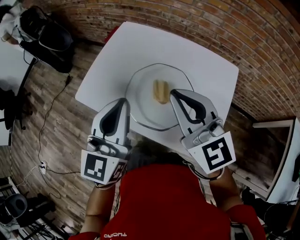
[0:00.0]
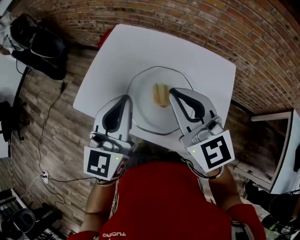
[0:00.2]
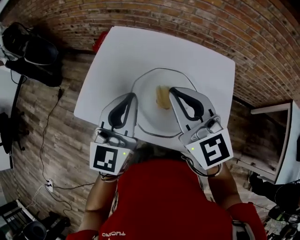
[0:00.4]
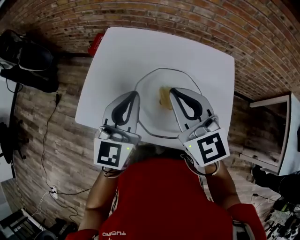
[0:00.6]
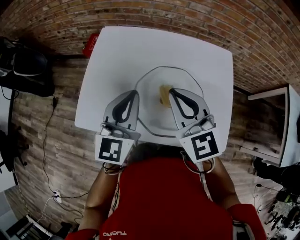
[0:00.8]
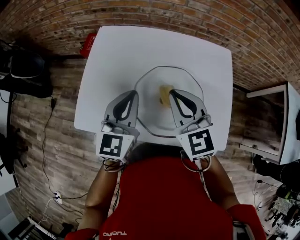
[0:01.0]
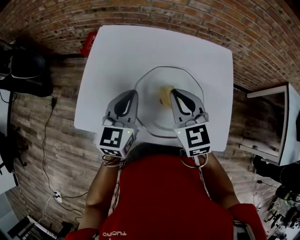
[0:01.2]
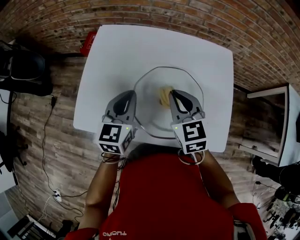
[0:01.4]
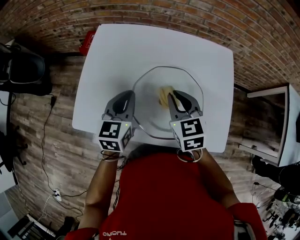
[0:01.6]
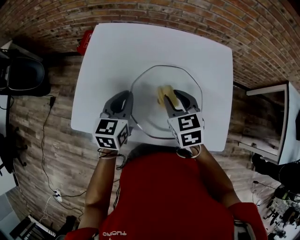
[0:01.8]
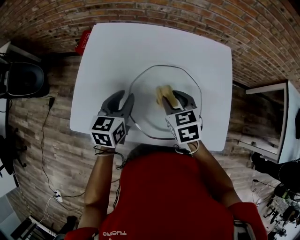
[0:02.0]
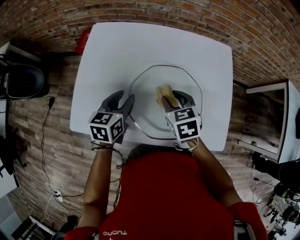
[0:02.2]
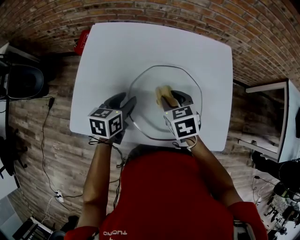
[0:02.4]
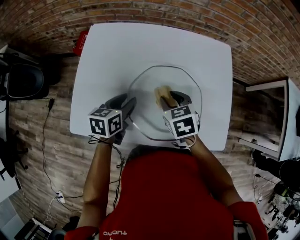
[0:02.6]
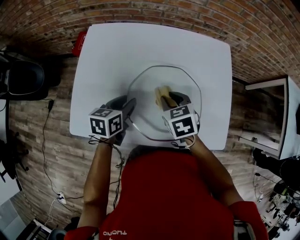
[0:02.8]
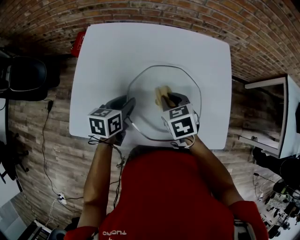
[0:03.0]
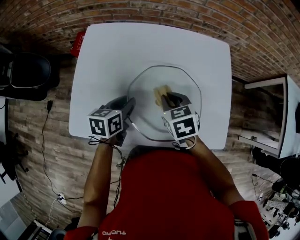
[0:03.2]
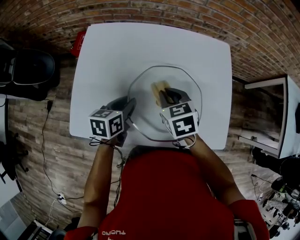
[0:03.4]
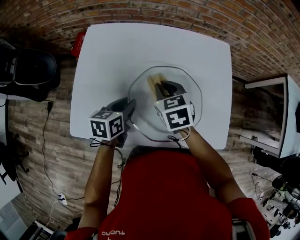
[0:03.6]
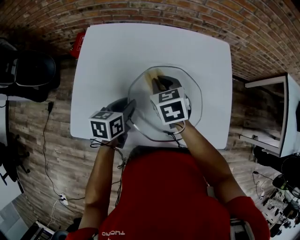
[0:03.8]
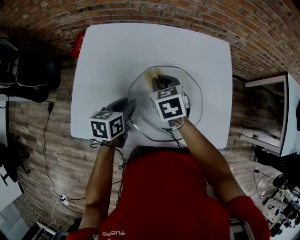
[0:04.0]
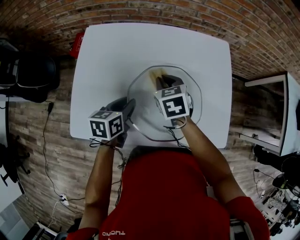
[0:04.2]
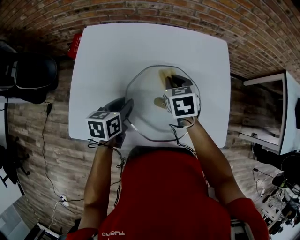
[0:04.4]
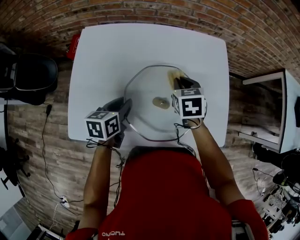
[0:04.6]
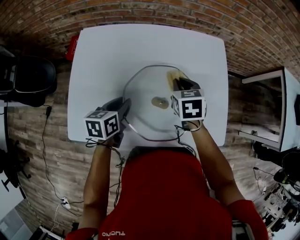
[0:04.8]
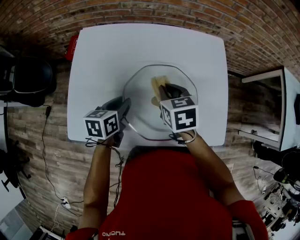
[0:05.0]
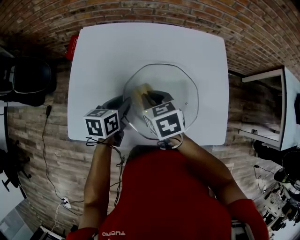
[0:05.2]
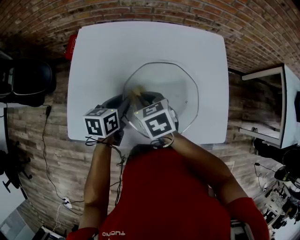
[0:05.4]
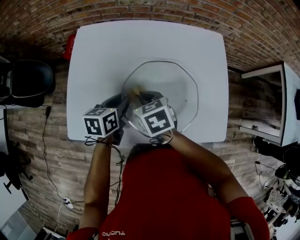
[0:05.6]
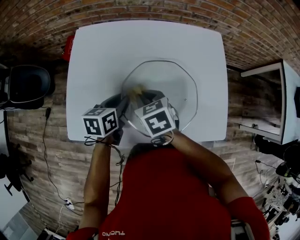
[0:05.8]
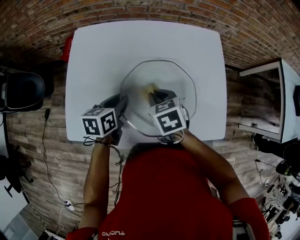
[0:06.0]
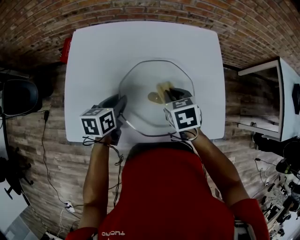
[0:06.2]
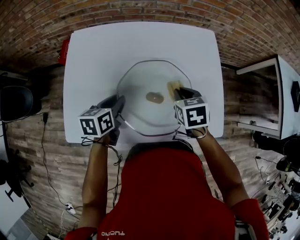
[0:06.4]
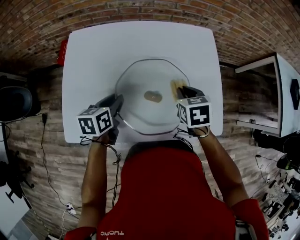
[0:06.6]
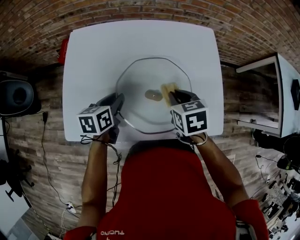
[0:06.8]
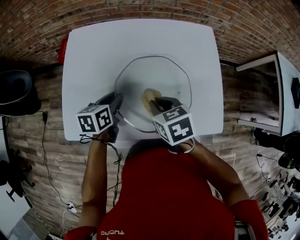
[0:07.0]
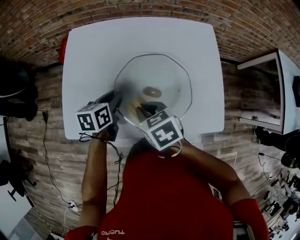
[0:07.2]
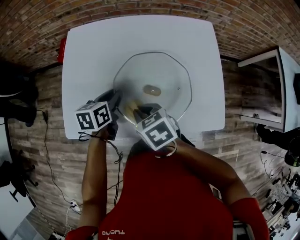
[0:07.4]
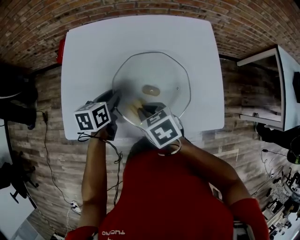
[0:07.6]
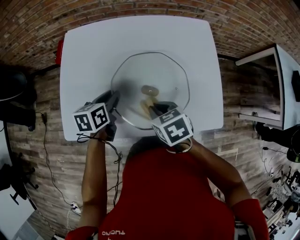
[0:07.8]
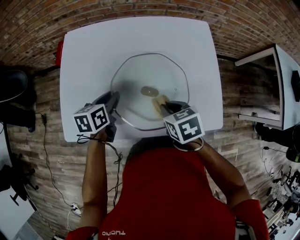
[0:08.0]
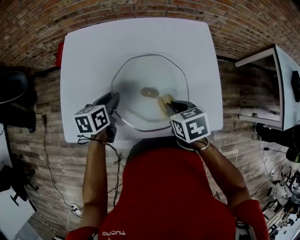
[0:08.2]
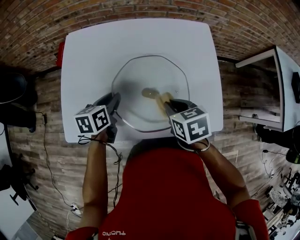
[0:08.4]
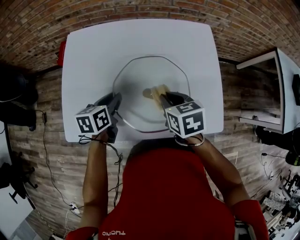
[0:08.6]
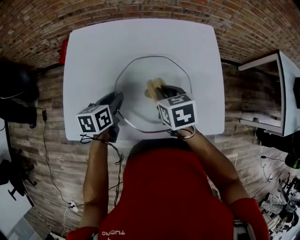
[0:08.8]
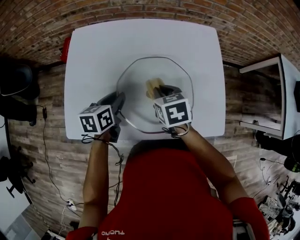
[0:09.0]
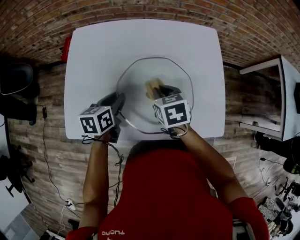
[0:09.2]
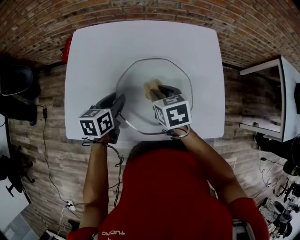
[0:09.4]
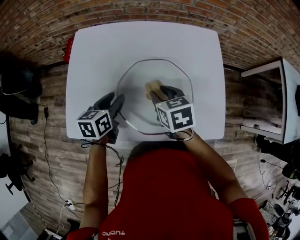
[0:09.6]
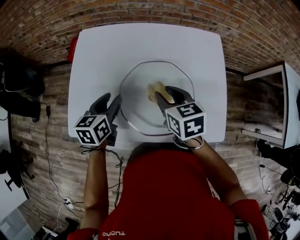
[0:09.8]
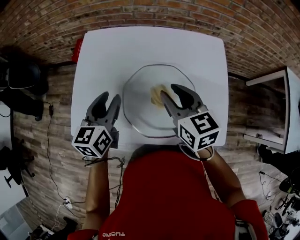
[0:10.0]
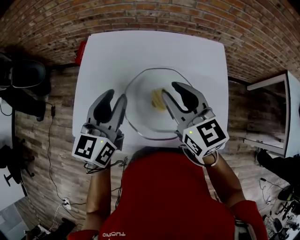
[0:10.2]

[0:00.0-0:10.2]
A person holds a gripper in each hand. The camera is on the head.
0:00.0 to 0:01.4: Both grippers travel together downward and forward, about 20 cm. The right gripper swivels about 40 degrees; the left gripper rotates approximately 30 degrees.
0:01.4 to 0:03.0: Both grippers move downward, approximately 10 cm. The left gripper changes its angle by some 30 degrees, and opens its fingers. The right gripper turns by about 30 degrees.
0:03.0 to 0:04.4: The right gripper goes approximately 5 cm forward.
0:04.4 to 0:05.8: The right gripper goes some 15 cm to the left and backward.
0:05.8 to 0:07.2: The right gripper heads backward, covering some 5 cm, and travels to the right and back again, approximately 20 cm each way.
0:07.2 to 0:08.8: The right gripper travels to the right and forward by roughly 10 cm.
0:08.8 to 0:10.2: The two grippers go about 20 cm upward. The right gripper points its fingers some 40 degrees further upward, and opens up, while the left gripper tips its fingers upward by some 30 degrees.

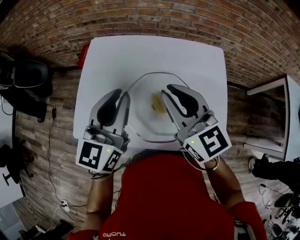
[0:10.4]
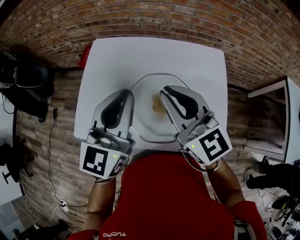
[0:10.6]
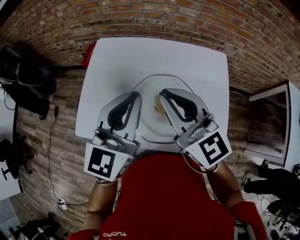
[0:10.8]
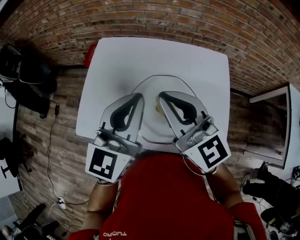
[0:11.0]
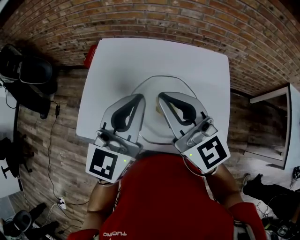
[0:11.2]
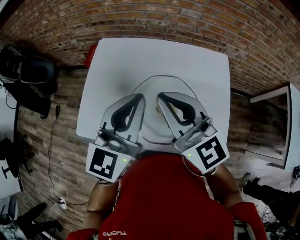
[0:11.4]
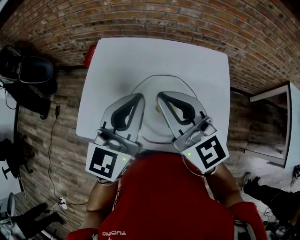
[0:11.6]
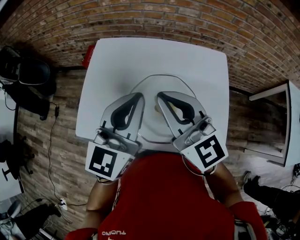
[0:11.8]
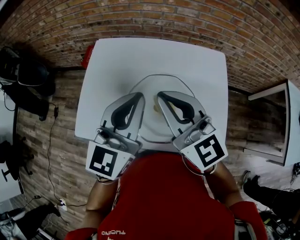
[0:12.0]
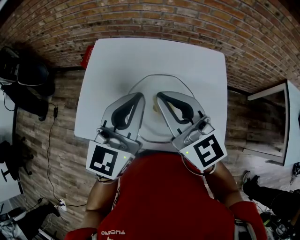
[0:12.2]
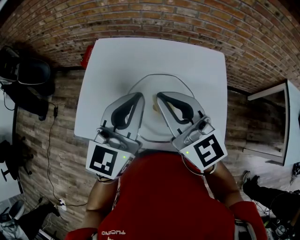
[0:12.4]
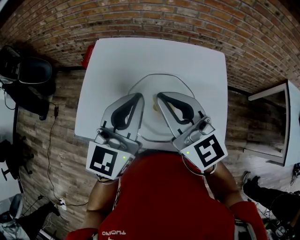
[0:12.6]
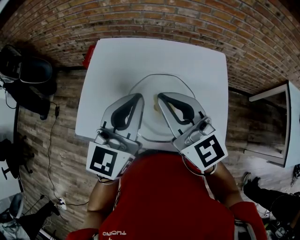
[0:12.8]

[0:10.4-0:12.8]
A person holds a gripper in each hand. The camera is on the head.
0:10.4 to 0:11.6: The right gripper changes place by some 5 cm.
0:11.6 to 0:12.8: The grippers make only small movements.

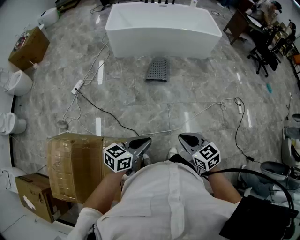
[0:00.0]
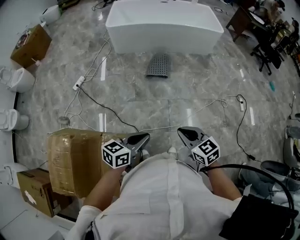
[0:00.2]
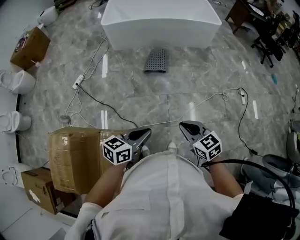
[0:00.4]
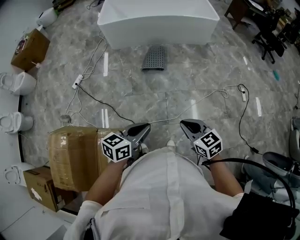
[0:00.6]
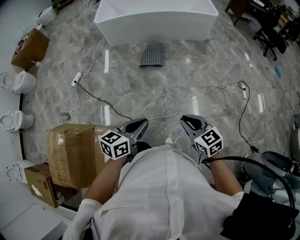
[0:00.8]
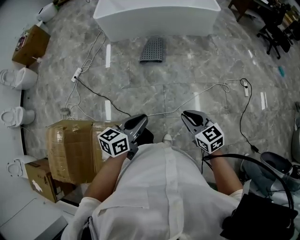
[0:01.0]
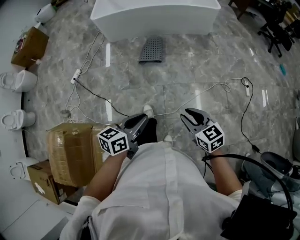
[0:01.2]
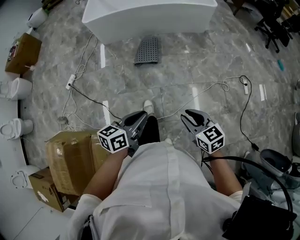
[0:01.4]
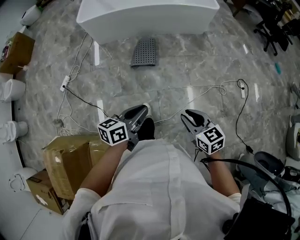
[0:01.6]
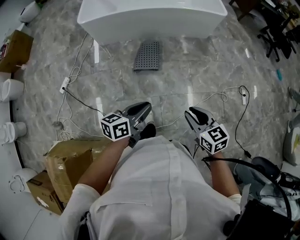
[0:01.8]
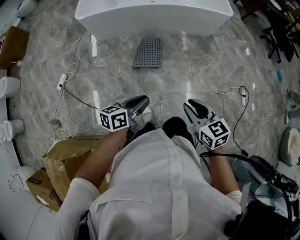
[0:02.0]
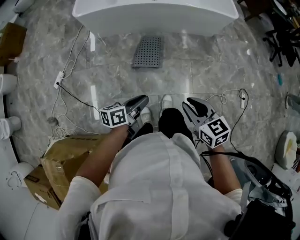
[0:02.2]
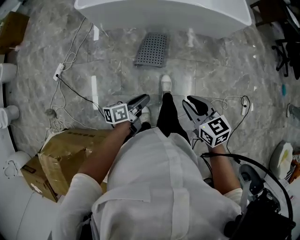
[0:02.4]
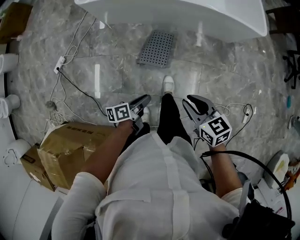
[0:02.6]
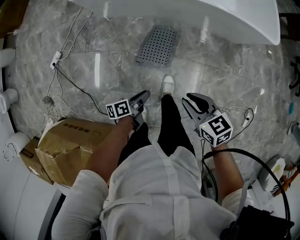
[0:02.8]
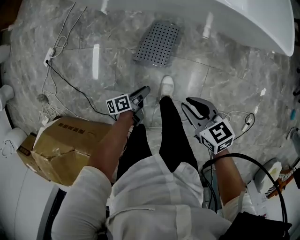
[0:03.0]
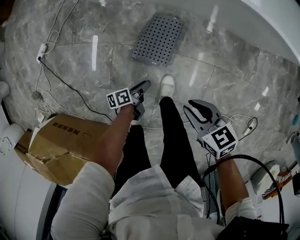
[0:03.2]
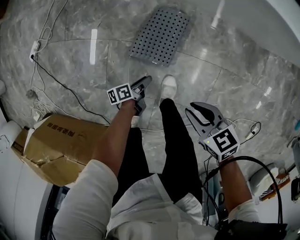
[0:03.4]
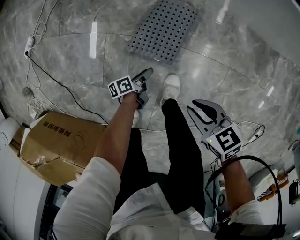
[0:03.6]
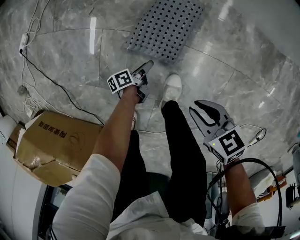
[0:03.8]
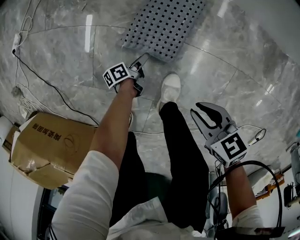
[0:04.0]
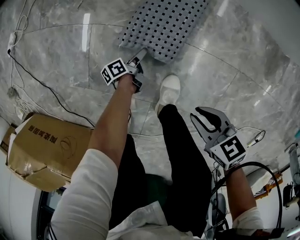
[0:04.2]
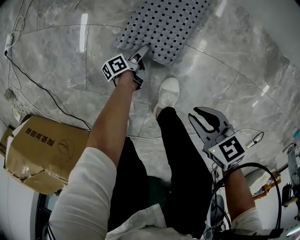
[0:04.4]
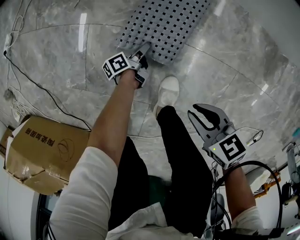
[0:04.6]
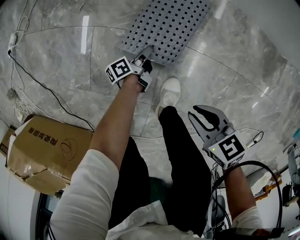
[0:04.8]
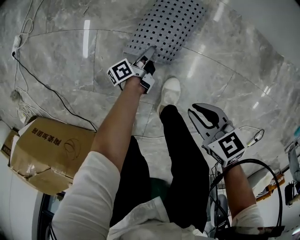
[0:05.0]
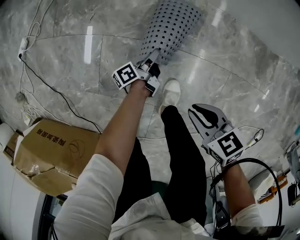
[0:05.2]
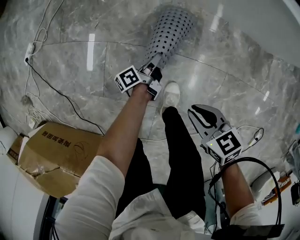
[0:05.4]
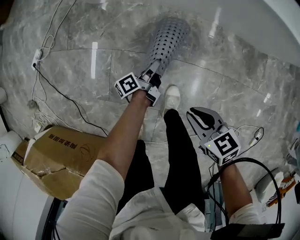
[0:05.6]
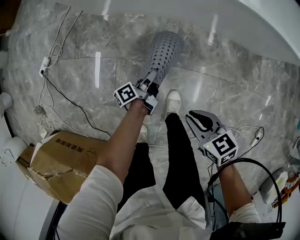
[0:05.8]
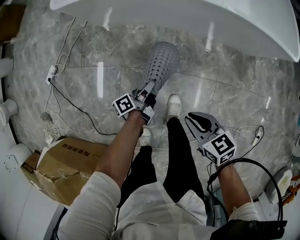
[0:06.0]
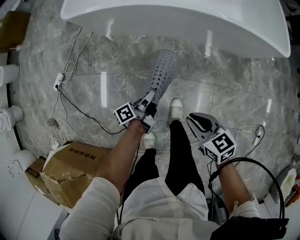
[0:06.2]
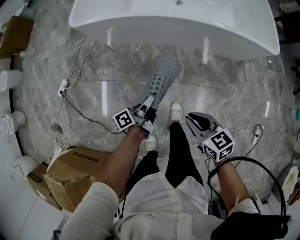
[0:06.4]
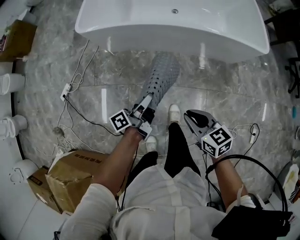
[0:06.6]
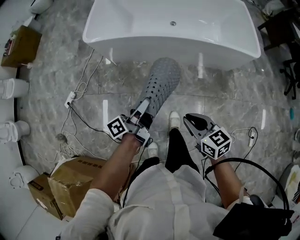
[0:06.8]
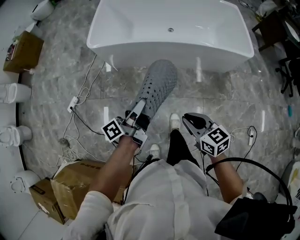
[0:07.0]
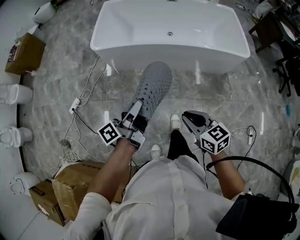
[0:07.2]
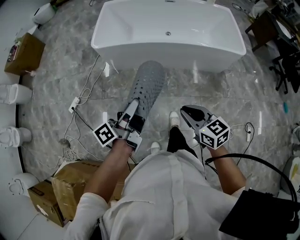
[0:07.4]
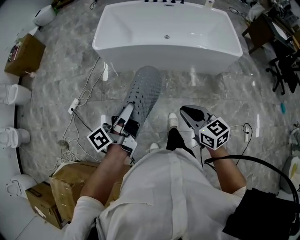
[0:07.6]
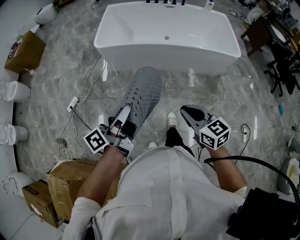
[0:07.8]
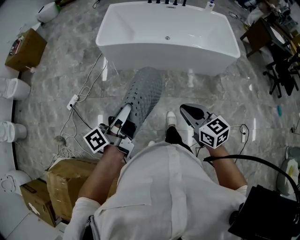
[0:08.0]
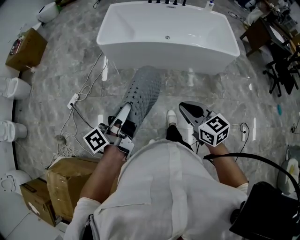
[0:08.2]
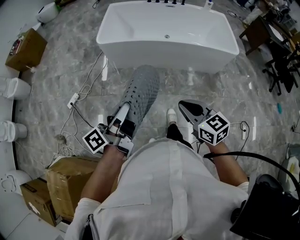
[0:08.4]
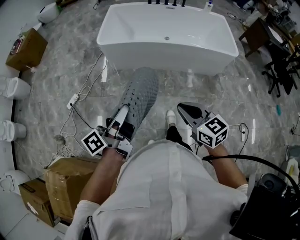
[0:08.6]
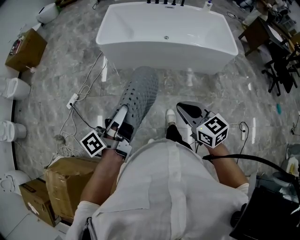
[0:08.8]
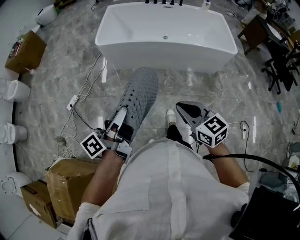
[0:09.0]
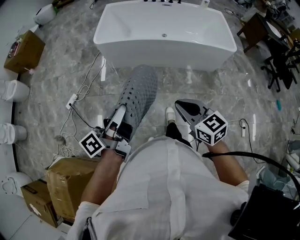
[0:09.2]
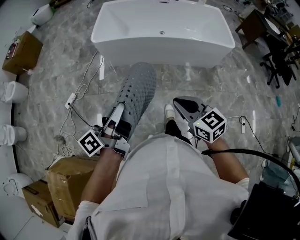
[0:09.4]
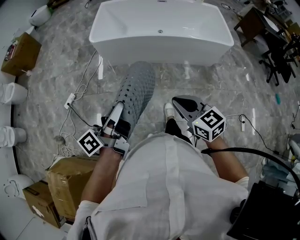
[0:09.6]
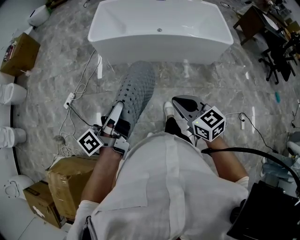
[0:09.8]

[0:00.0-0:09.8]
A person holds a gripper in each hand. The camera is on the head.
0:00.0 to 0:01.4: The right gripper ends up about 25 cm from where it was.
0:01.4 to 0:02.8: The right gripper ends up about 60 cm from where it was, and rotates some 20 degrees.
0:02.8 to 0:04.2: The right gripper heads downward, covering roughly 40 cm, and turns by some 20 degrees.
0:04.2 to 0:05.6: The right gripper is displaced upward by roughly 15 cm.
0:05.6 to 0:07.0: The right gripper heads upward, covering approximately 40 cm, and swivels roughly 20 degrees.
0:07.0 to 0:08.4: The right gripper ends up some 20 cm from where it was.

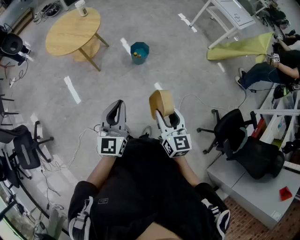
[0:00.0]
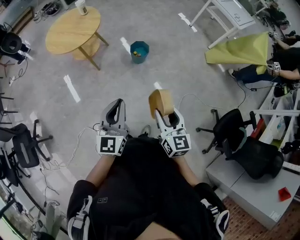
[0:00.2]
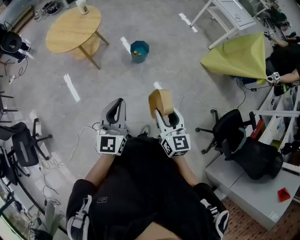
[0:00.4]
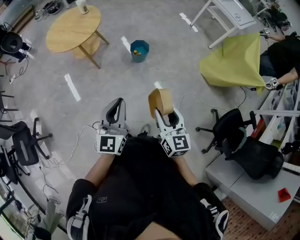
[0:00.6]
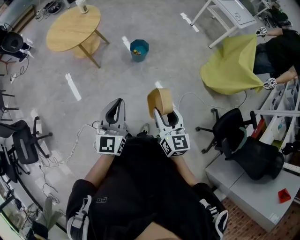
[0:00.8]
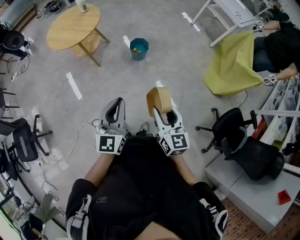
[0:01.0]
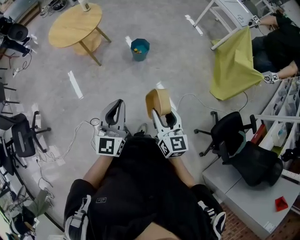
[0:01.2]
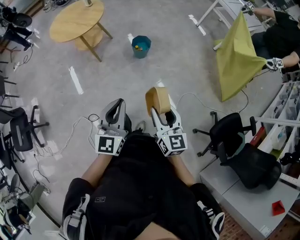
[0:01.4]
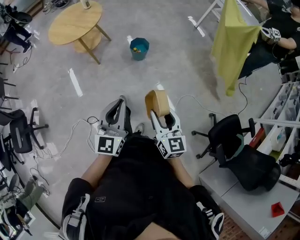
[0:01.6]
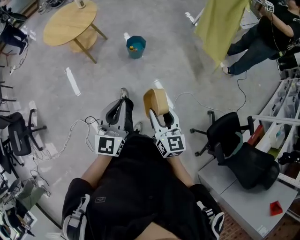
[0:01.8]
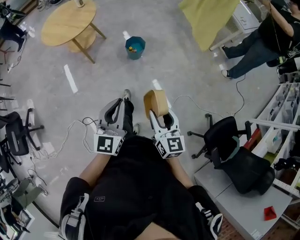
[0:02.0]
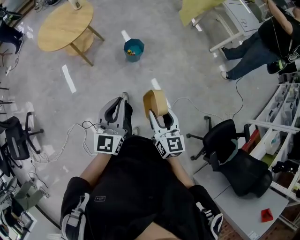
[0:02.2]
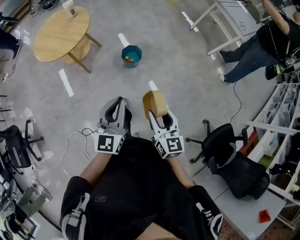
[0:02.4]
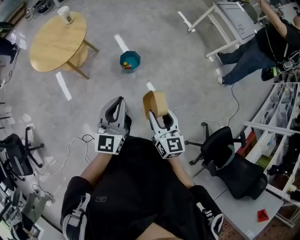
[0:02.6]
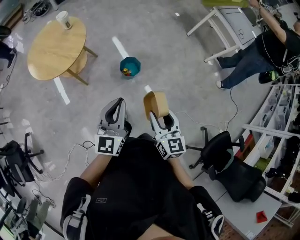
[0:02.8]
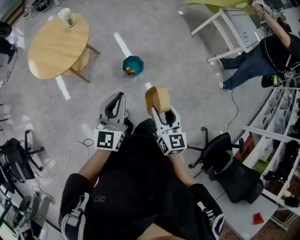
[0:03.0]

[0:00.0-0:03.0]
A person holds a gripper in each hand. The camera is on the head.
0:00.0 to 0:01.6: Both grippers move to the right, about 10 cm.
0:01.6 to 0:03.0: Both grippers travel together forward, some 35 cm.
